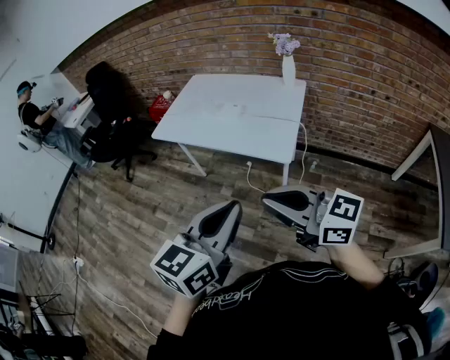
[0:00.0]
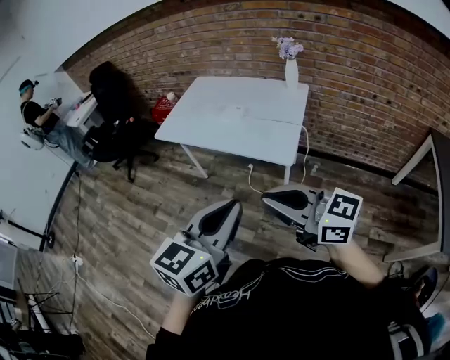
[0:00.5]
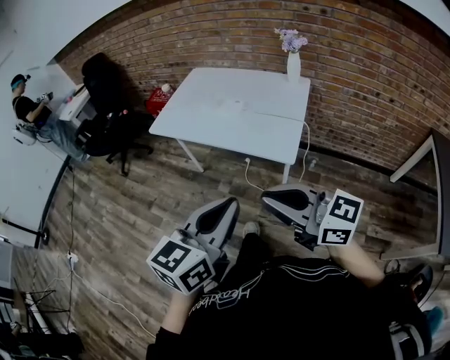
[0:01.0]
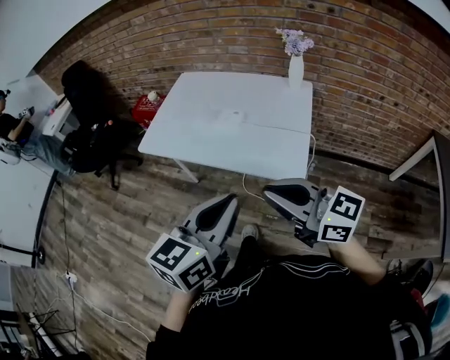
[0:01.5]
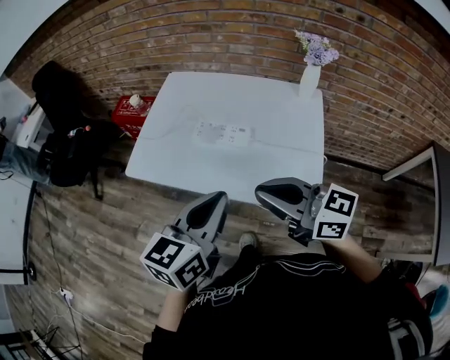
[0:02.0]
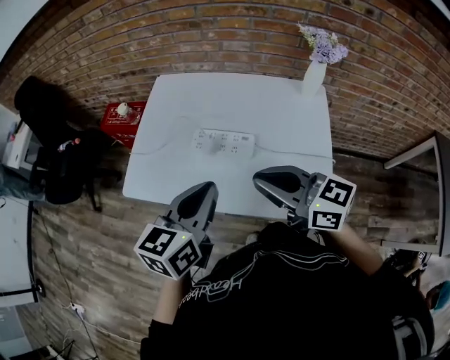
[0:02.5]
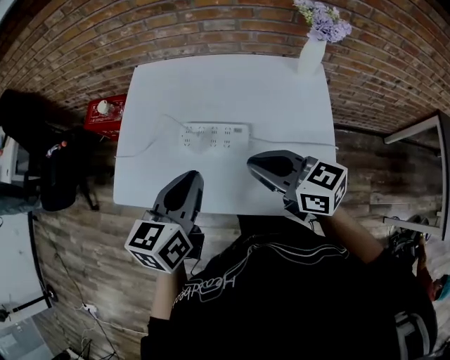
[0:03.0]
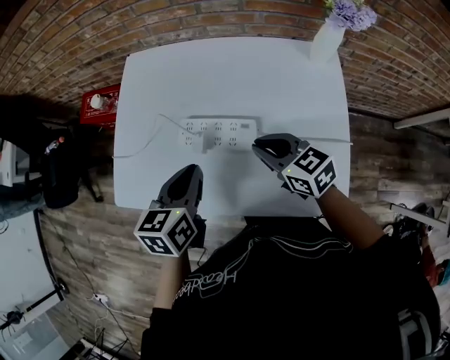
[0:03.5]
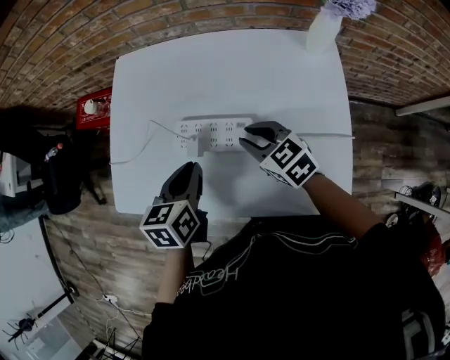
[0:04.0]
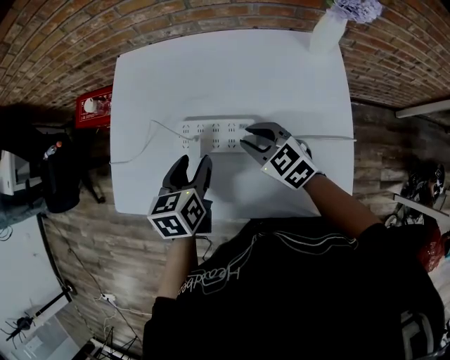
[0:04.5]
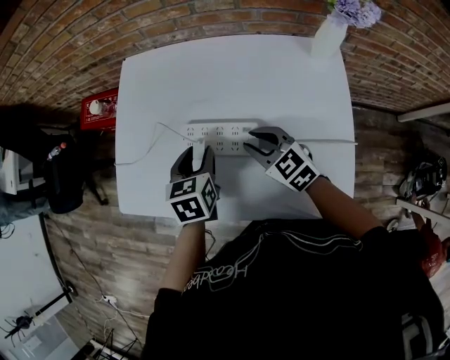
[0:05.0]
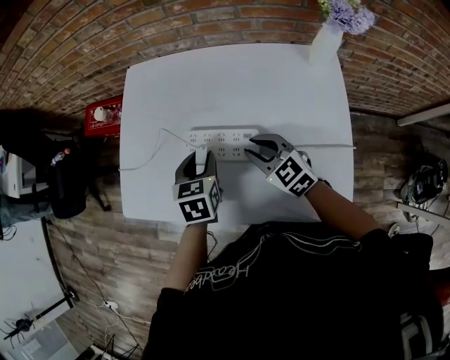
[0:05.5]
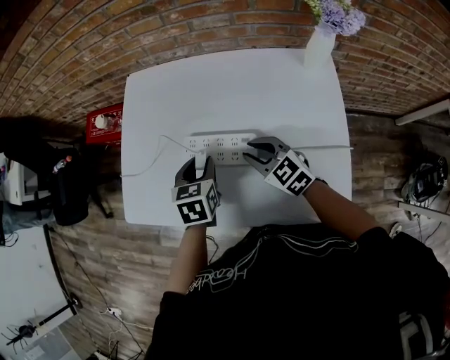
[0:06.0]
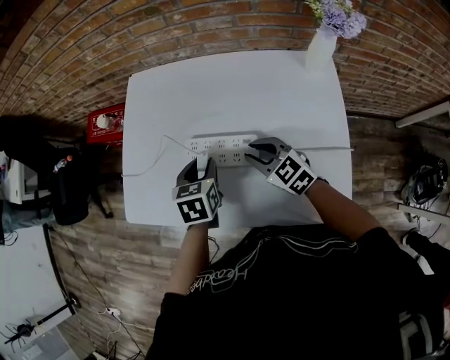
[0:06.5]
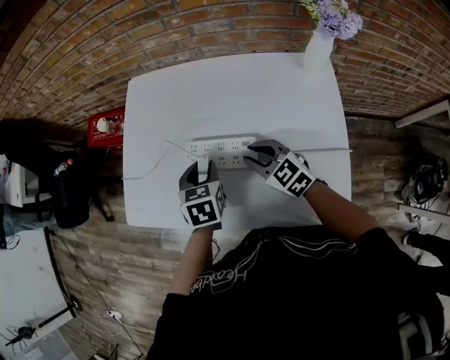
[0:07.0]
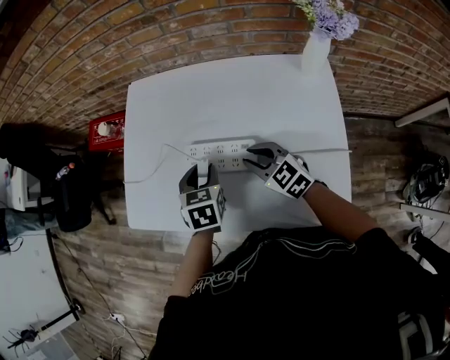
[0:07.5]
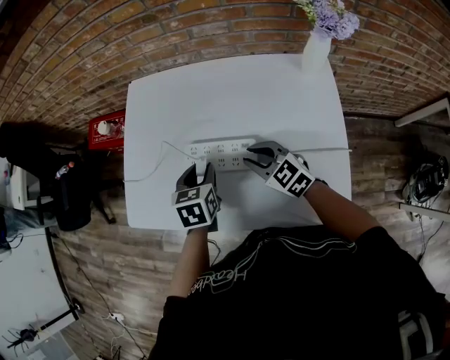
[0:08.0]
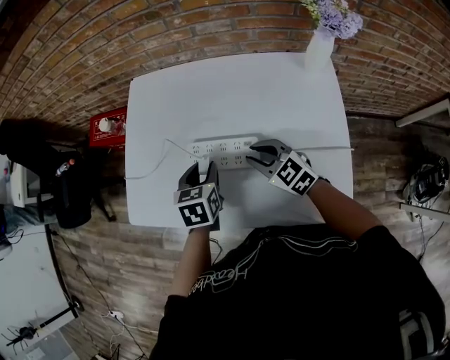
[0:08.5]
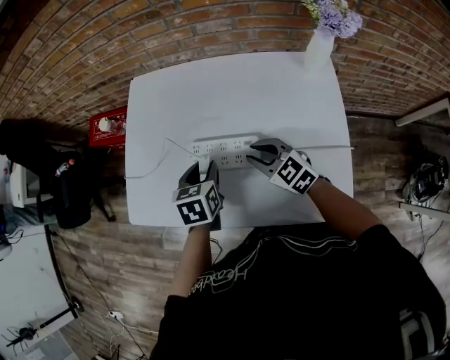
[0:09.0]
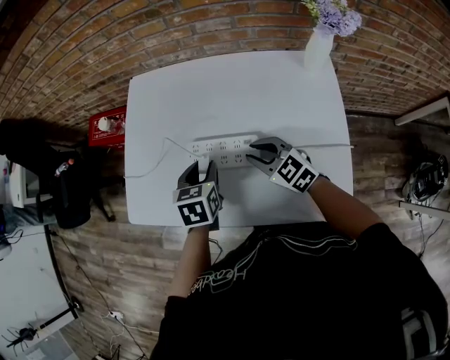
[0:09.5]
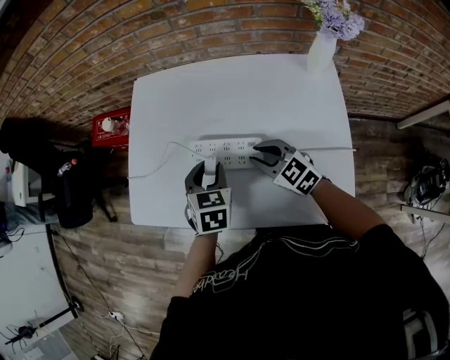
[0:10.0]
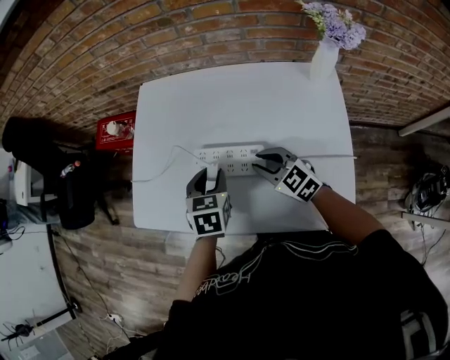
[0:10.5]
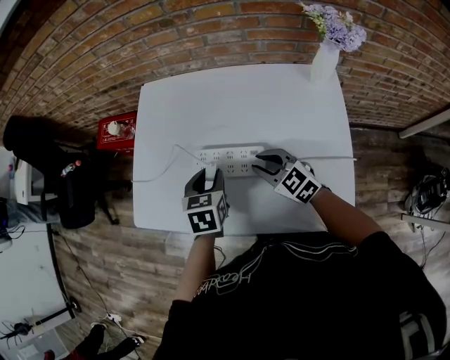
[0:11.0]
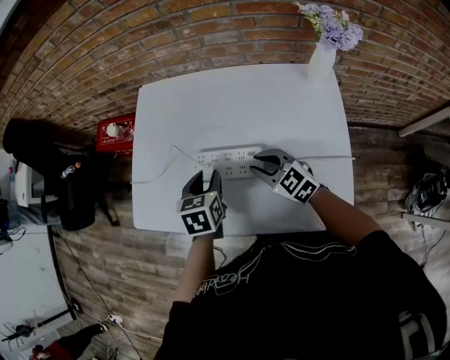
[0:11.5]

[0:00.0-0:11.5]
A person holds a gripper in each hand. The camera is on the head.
0:00.0 to 0:02.0: Both grippers travel together forward, approximately 35 cm.
0:02.0 to 0:04.0: The two grippers go approximately 35 cm forward and downward. The left gripper changes its angle by roughly 30 degrees; the right gripper tilts its fingers approximately 40 degrees downward.
0:04.0 to 0:06.0: The left gripper changes place by some 5 cm, and opens up.
0:06.0 to 0:11.5: The grippers stay close to where they were, moving slightly.

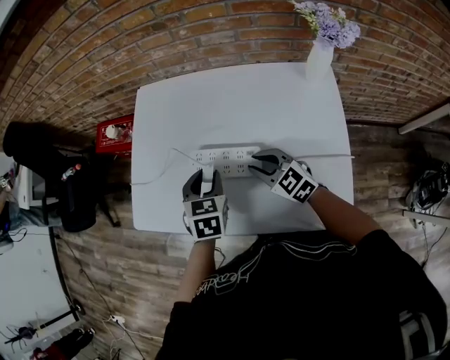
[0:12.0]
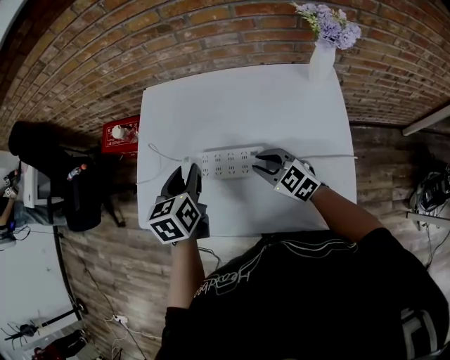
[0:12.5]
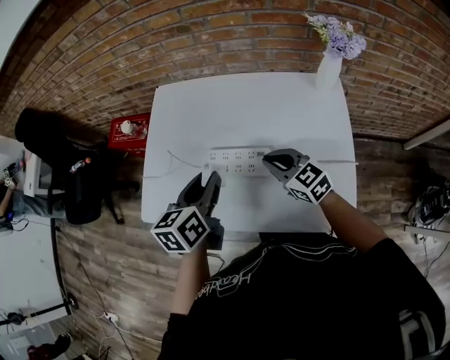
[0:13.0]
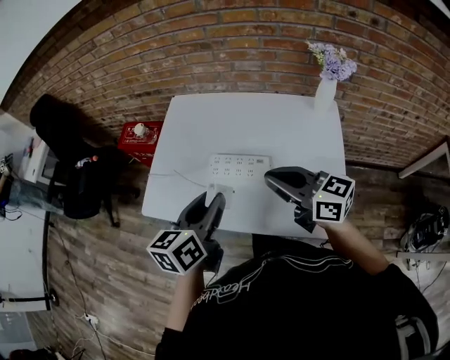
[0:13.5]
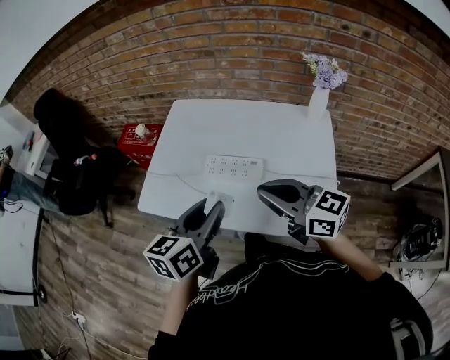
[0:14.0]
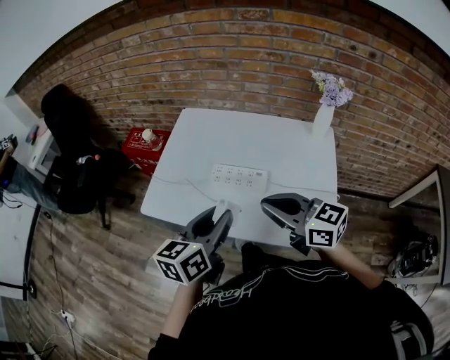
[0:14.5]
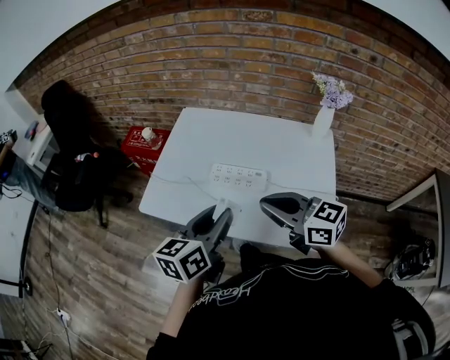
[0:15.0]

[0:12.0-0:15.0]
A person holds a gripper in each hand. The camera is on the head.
0:12.0 to 0:13.5: Both grippers move upward and backward, roughly 20 cm. The left gripper changes its angle by roughly 40 degrees. Meanwhile the right gripper swivels approximately 40 degrees.
0:13.5 to 0:15.0: The two grippers go some 5 cm backward.

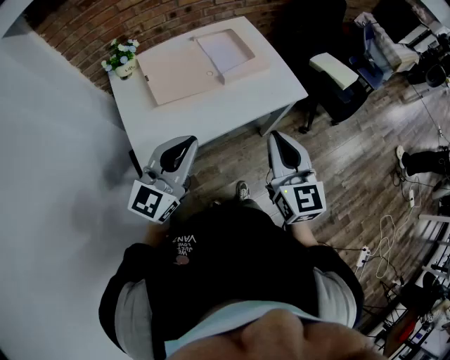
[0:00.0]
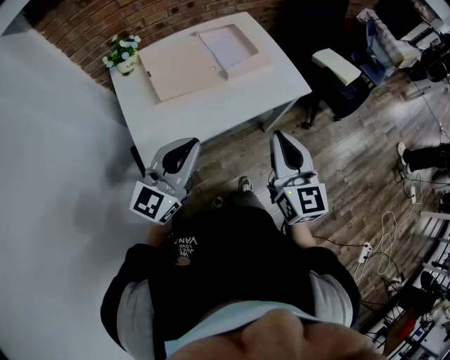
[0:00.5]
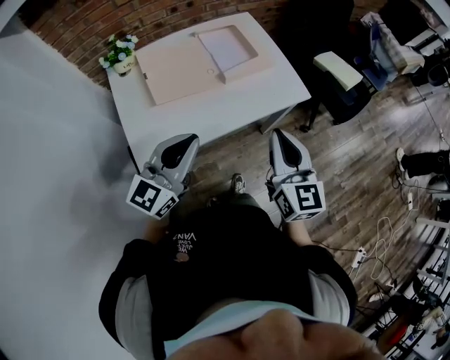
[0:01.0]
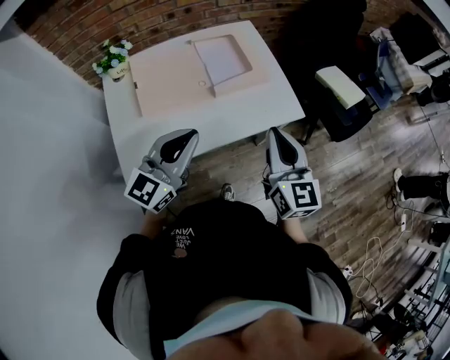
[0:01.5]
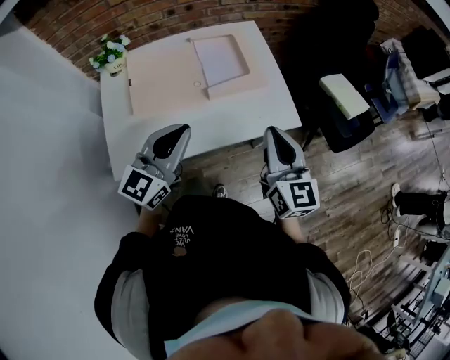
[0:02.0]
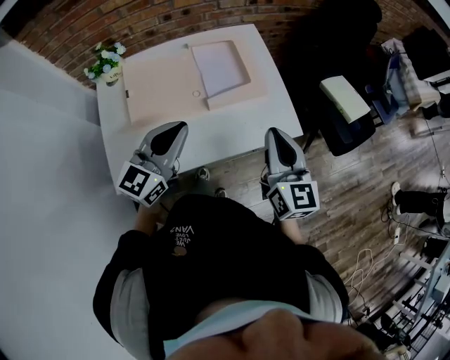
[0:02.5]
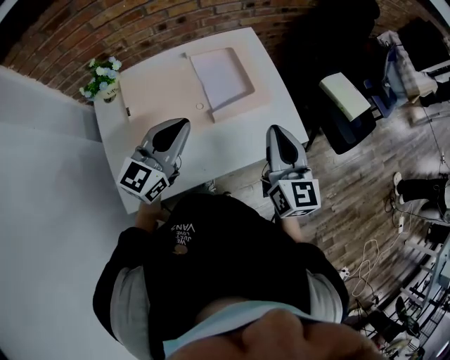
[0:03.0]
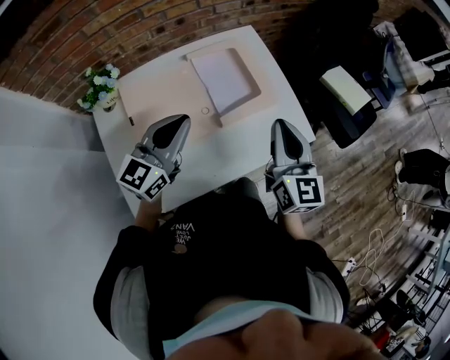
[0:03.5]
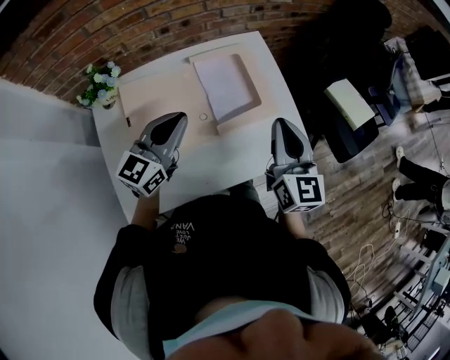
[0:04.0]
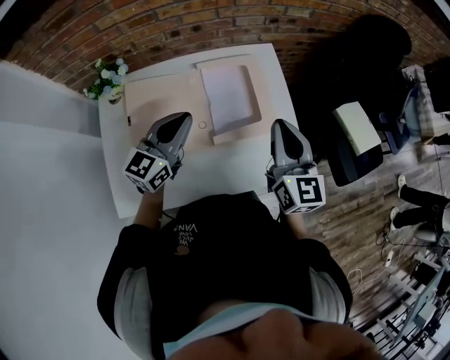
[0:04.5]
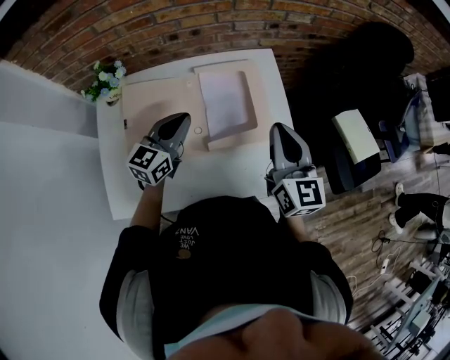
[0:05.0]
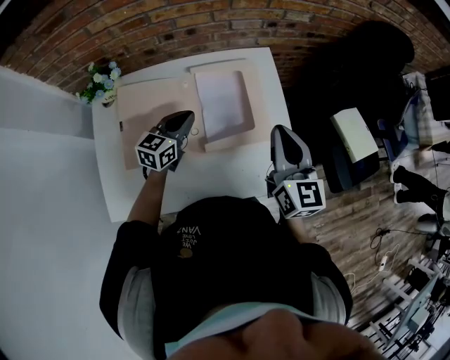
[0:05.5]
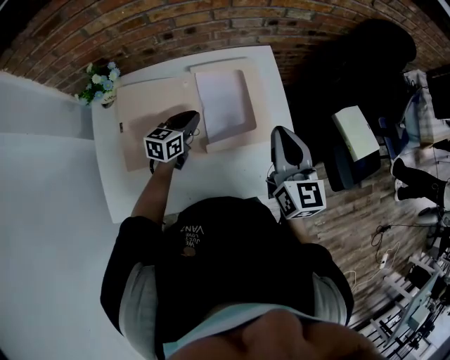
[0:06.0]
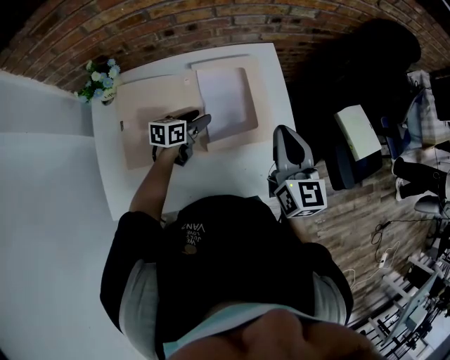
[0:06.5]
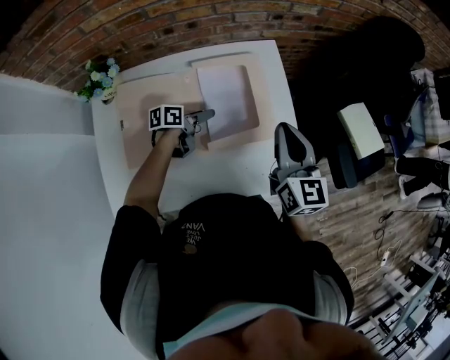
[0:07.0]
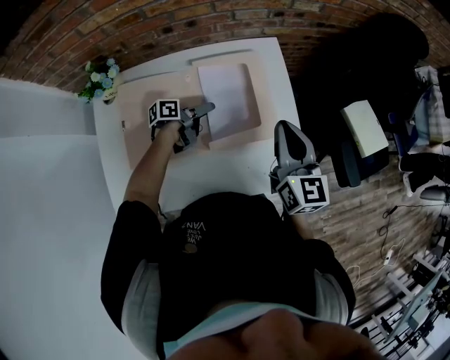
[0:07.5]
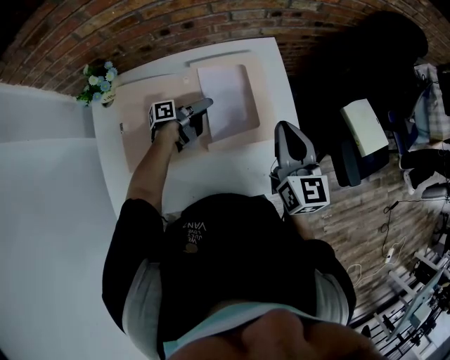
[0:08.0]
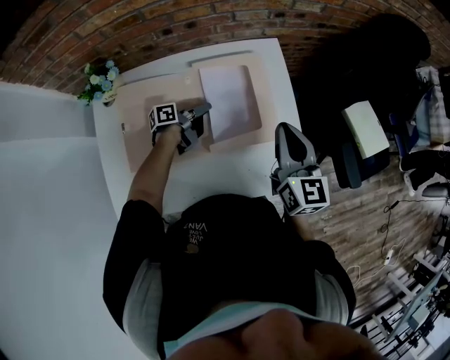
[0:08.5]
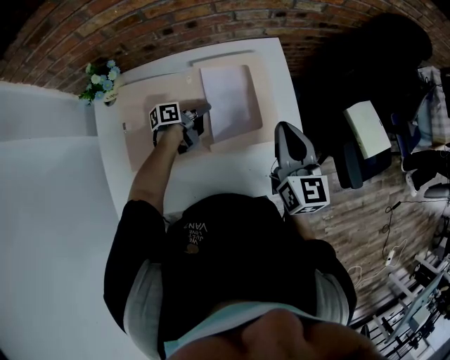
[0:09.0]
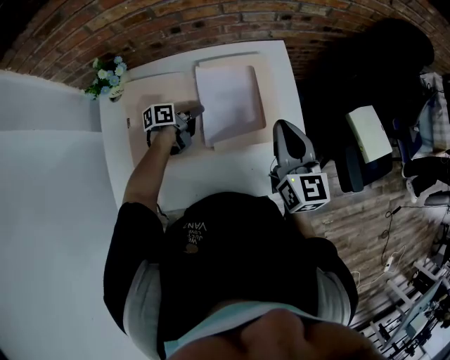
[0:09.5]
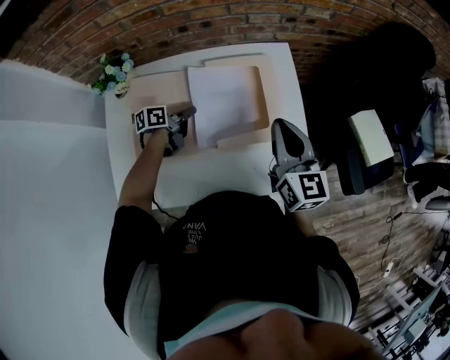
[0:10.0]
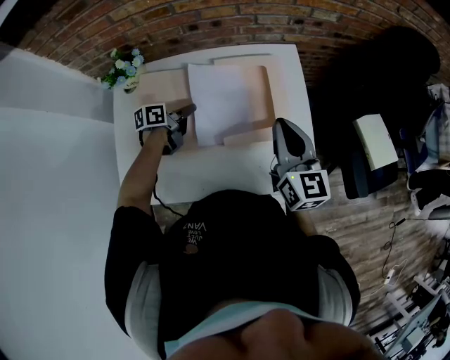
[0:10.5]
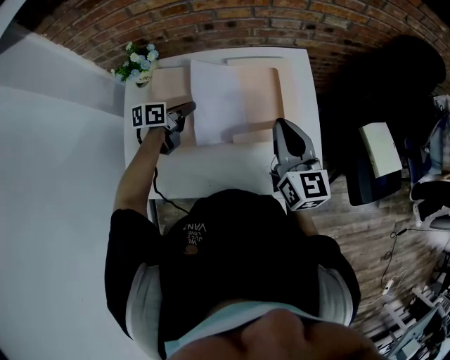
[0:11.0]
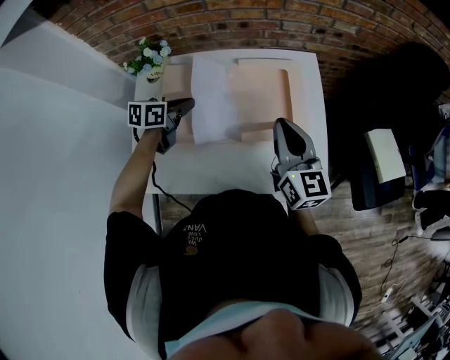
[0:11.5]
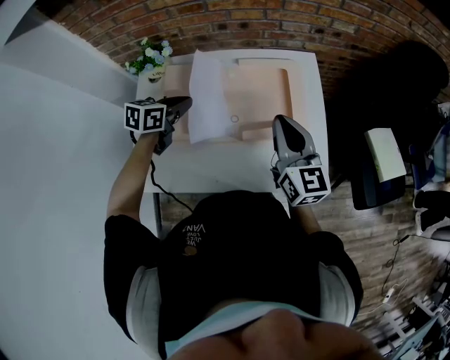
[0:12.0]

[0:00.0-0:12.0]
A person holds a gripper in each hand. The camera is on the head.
0:00.0 to 0:02.0: Both grippers move forward and to the right, approximately 15 cm.
0:02.0 to 0:04.0: The two grippers go roughly 20 cm forward and to the left.
0:04.0 to 0:06.0: The left gripper is displaced downward and forward by about 20 cm, and changes its angle by about 30 degrees; the right gripper shifts roughly 10 cm forward.
0:06.0 to 0:08.0: The left gripper goes about 5 cm downward, rotates around the line of its fingers by about 60 degrees, counterclockwise from behind, and opens.
0:08.0 to 0:10.0: The left gripper heads to the left and backward, covering approximately 10 cm, swivels approximately 20 degrees, and closes its fingers.
0:10.0 to 0:12.0: The right gripper travels to the left by about 5 cm; the left gripper shifts approximately 15 cm upward, backward and to the left, and turns by some 40 degrees.
